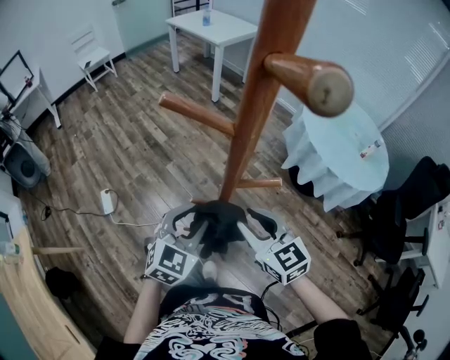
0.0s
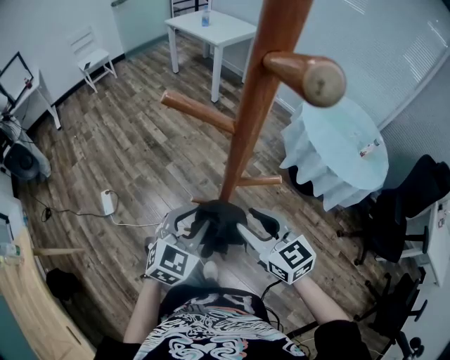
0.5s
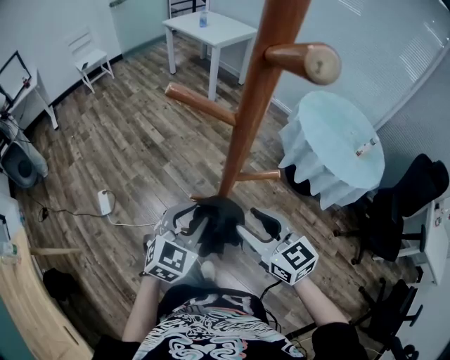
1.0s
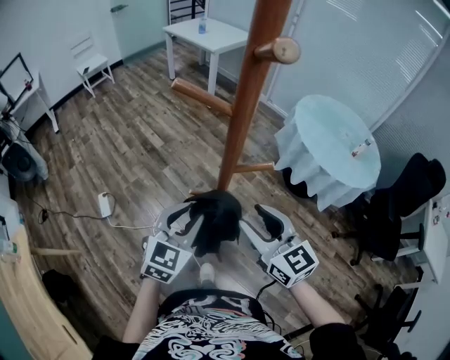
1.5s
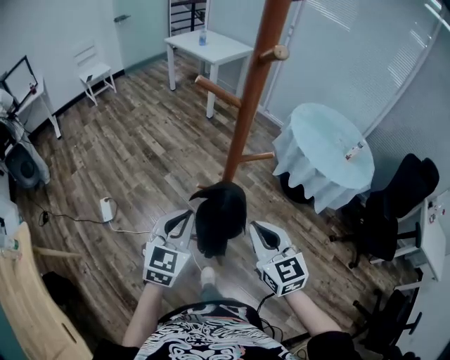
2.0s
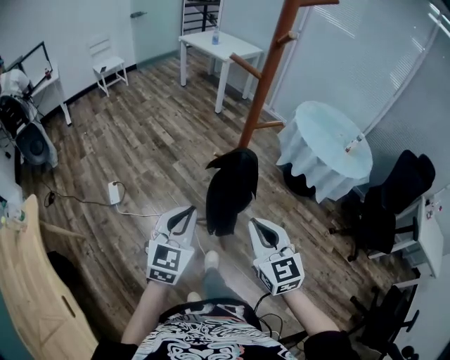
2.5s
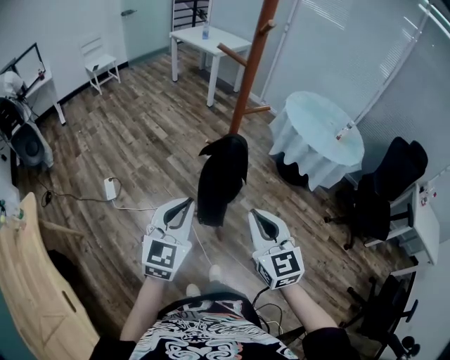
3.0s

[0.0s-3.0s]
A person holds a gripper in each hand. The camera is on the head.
0.0s to 1.5s: The right gripper heads upward, covering some 5 cm.
1.5s to 3.0s: Both grippers travel together backward, about 25 cm. The left gripper closes; the right gripper closes its fingers.

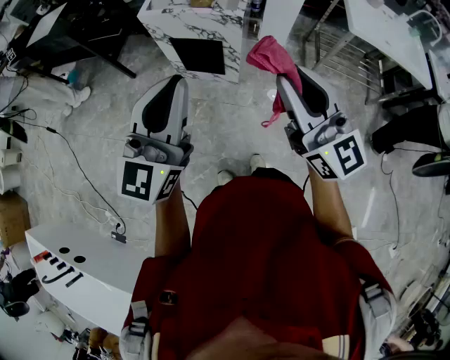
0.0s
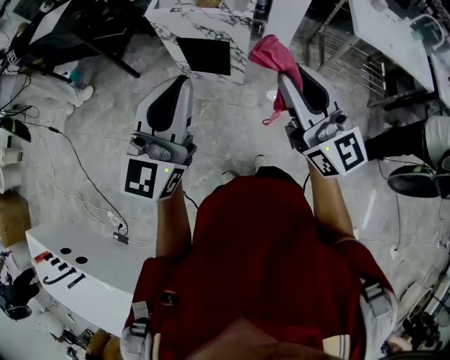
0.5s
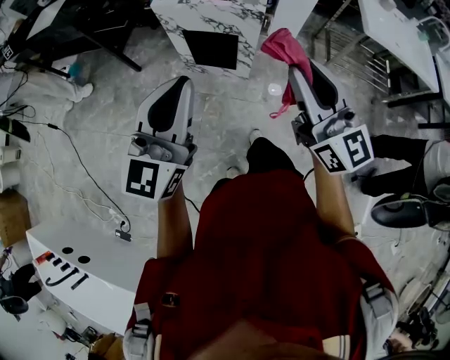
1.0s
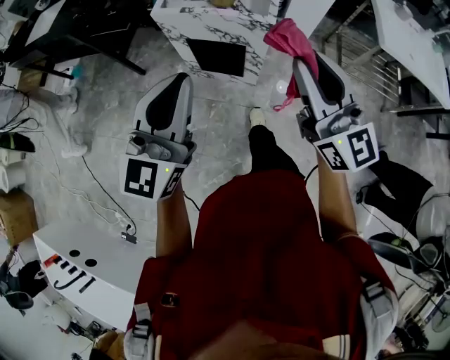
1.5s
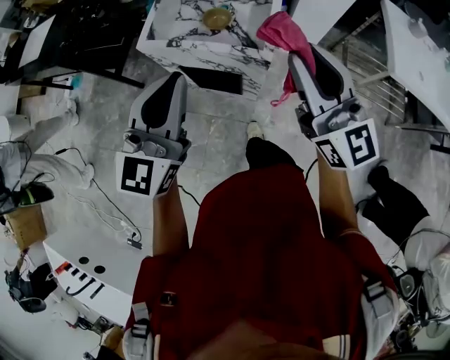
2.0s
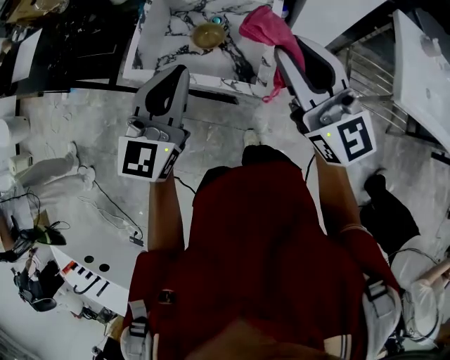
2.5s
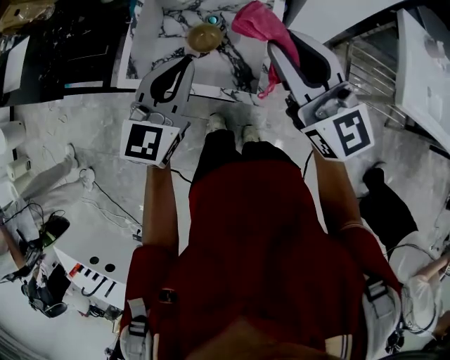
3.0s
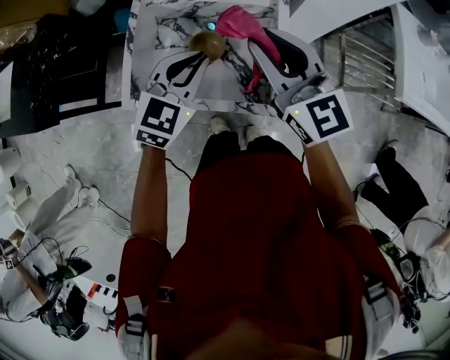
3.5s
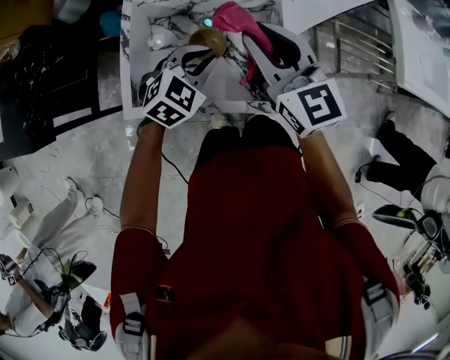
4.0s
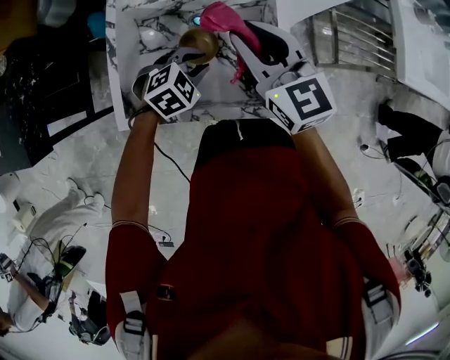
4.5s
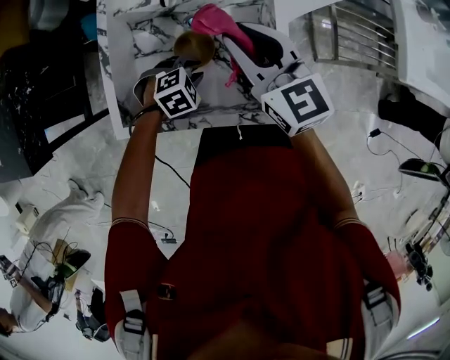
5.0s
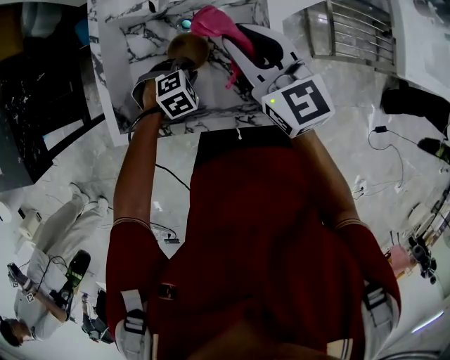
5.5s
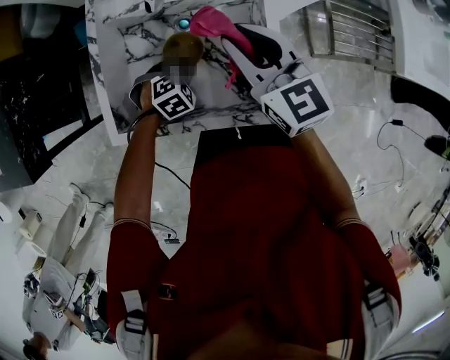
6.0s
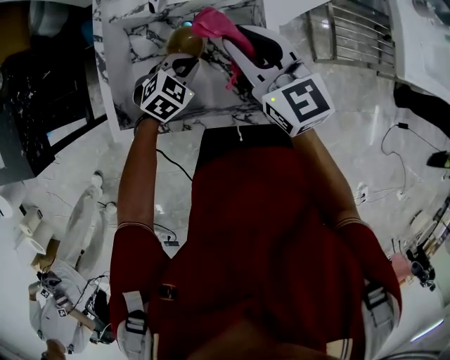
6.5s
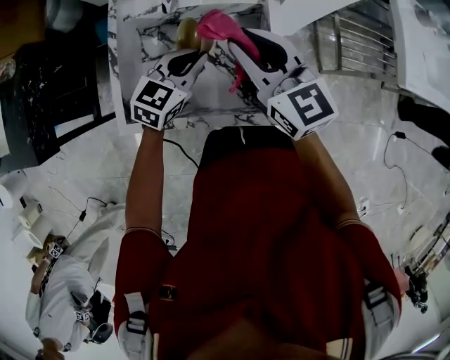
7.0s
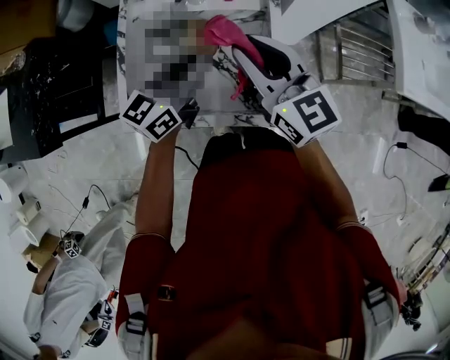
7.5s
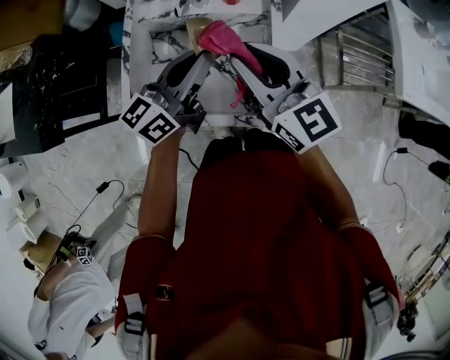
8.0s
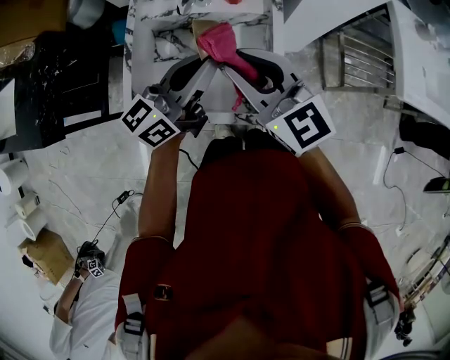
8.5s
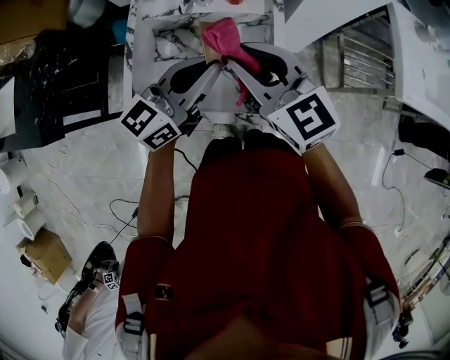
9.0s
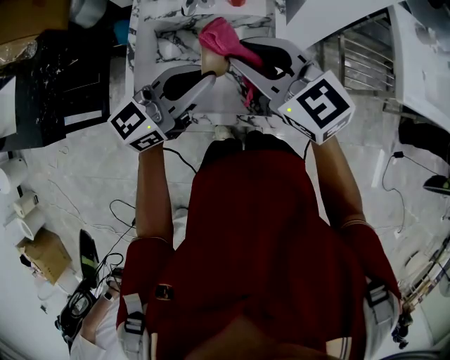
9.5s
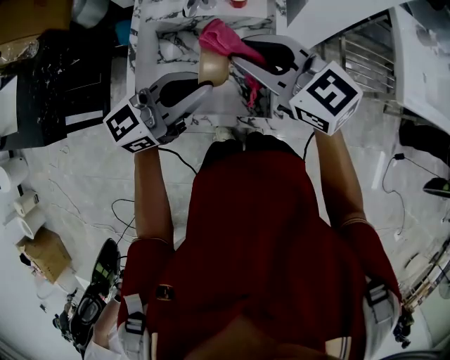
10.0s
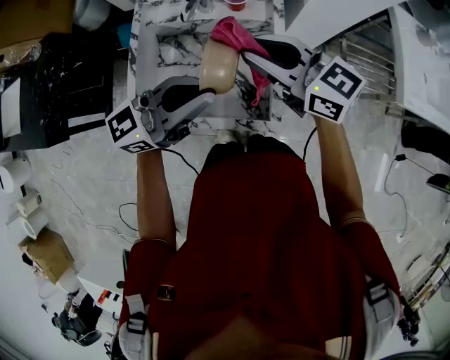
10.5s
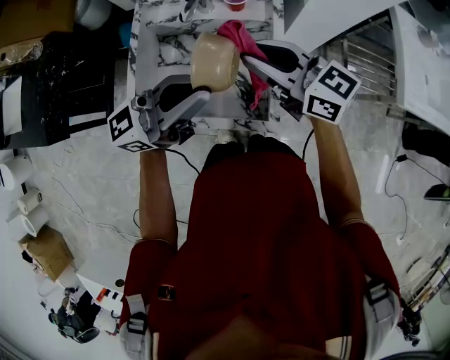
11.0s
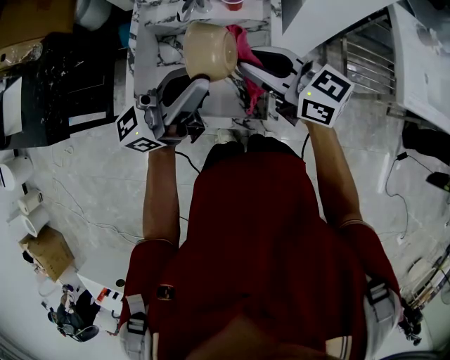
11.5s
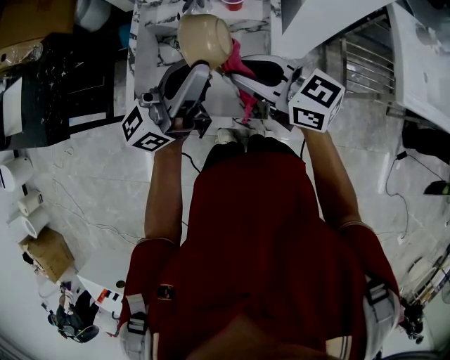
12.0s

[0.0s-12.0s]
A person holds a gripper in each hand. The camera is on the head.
0.0s to 2.0s: The two grippers go roughly 30 cm forward.
2.0s to 4.0s: The left gripper travels forward and downward by roughly 40 cm, and angles its fingers downward, by approximately 40 degrees. The right gripper is displaced forward, downward and to the left by approximately 35 cm, and rotates roughly 20 degrees.
4.0s to 6.0s: The left gripper shifts about 15 cm downward, and turns by about 30 degrees. The right gripper shifts about 5 cm downward.
6.0s to 8.0s: The left gripper heads upward, covering roughly 30 cm, and points its fingers about 70 degrees further upward; the right gripper shifts approximately 10 cm upward and backward.
8.0s to 10.0s: The right gripper turns by some 20 degrees. The left gripper shifts roughly 5 cm backward, and rotates some 20 degrees.
10.0s to 12.0s: The left gripper shifts by about 5 cm, and turns by some 30 degrees.

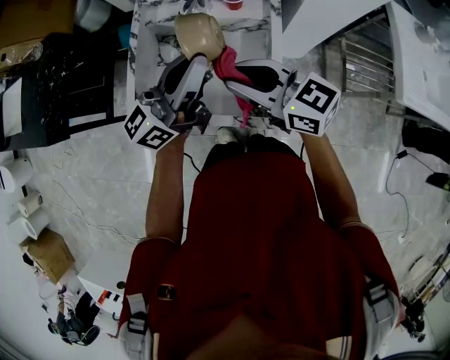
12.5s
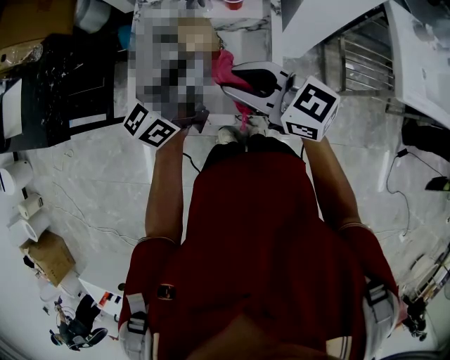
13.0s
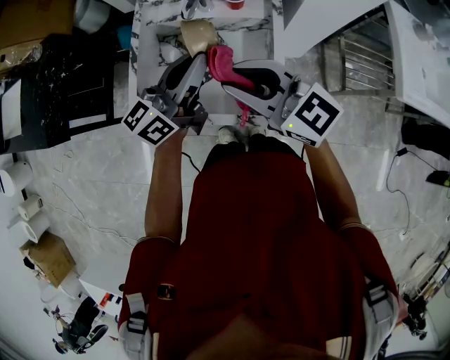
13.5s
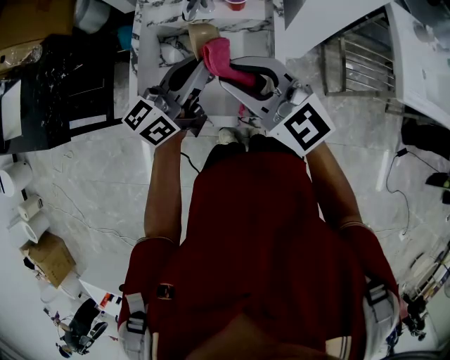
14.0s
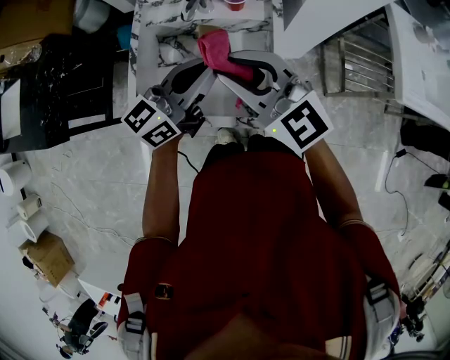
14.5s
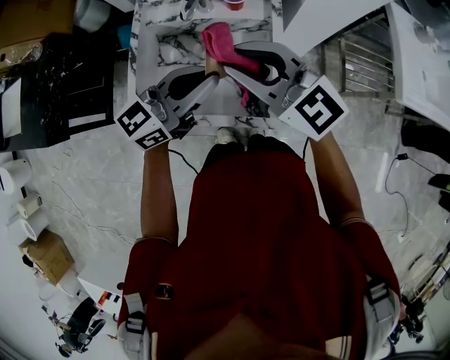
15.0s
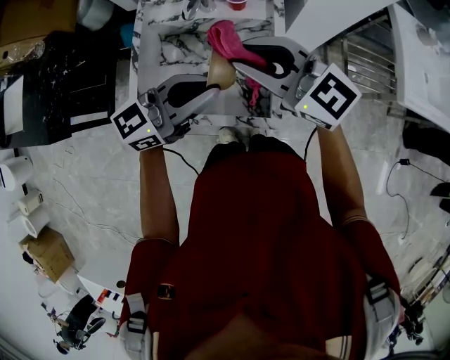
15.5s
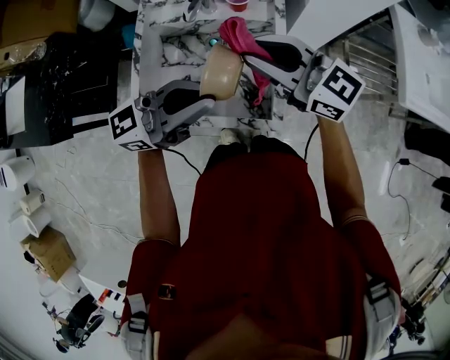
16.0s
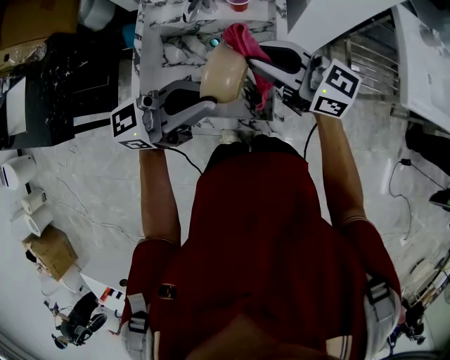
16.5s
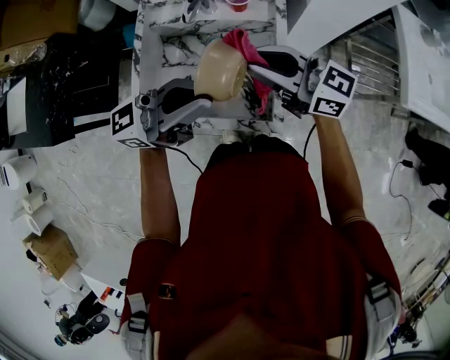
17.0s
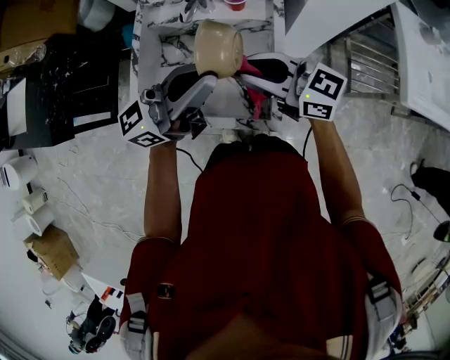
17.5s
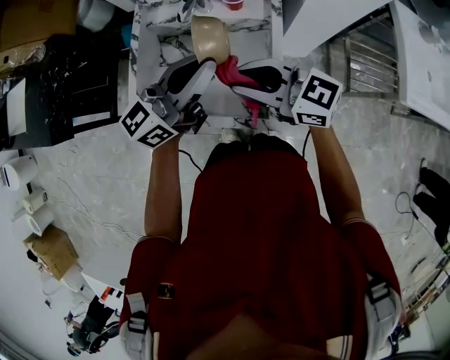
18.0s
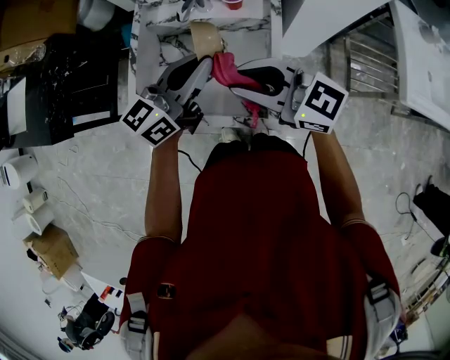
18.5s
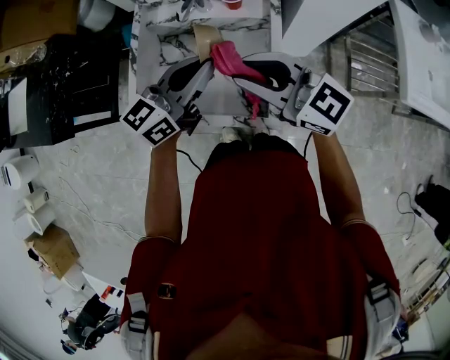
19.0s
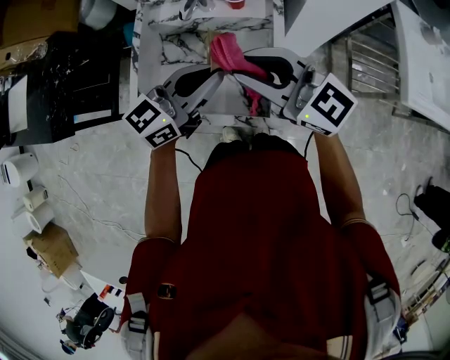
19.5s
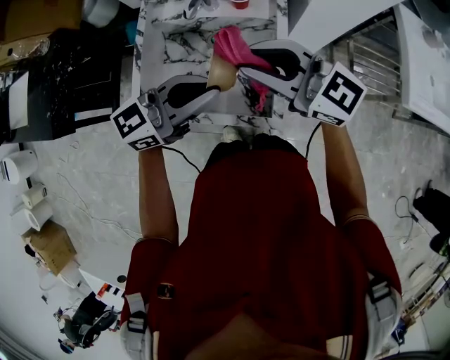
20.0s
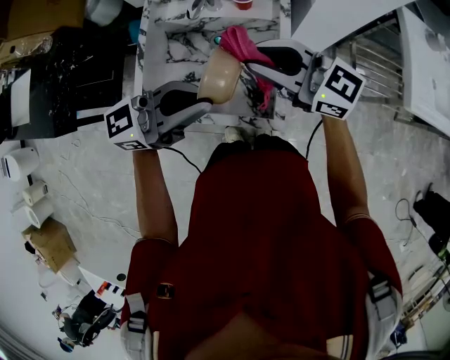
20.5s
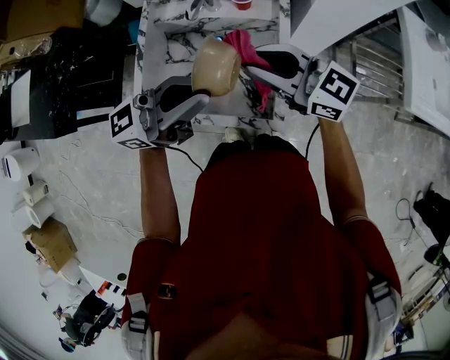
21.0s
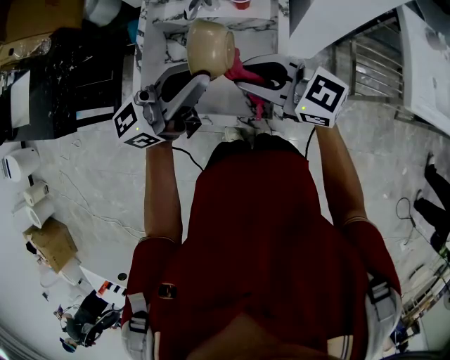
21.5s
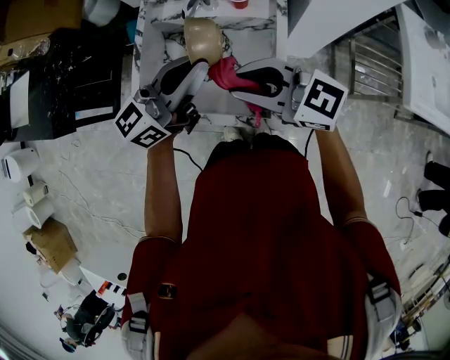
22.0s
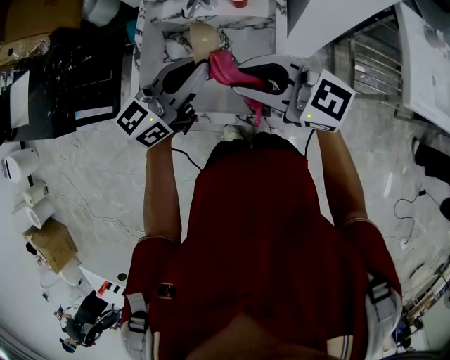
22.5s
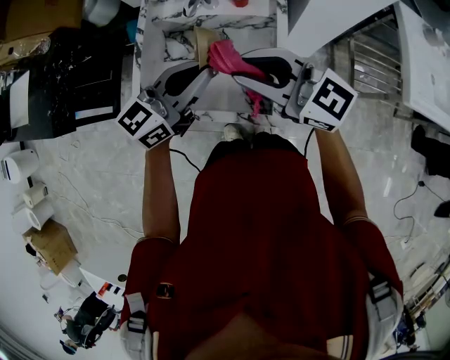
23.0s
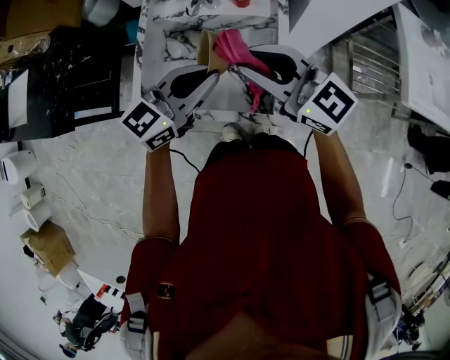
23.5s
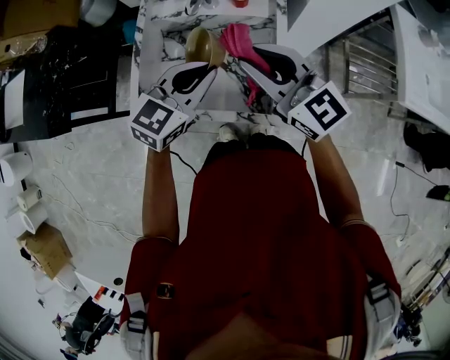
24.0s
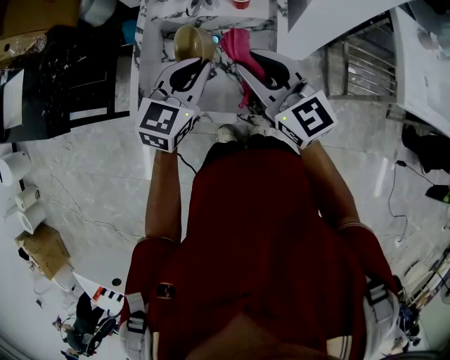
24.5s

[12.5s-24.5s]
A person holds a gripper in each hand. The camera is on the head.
12.5s to 14.5s: The right gripper swivels roughly 30 degrees.
14.5s to 16.5s: The left gripper ends up roughly 10 cm from where it was, and rotates approximately 30 degrees. The right gripper ends up roughly 5 cm from where it was, and rotates approximately 40 degrees.
16.5s to 18.5s: The right gripper moves about 5 cm. Meanwhile the left gripper shifts by about 10 cm, and turns by some 30 degrees.
18.5s to 20.5s: The left gripper moves roughly 10 cm, and rotates roughly 30 degrees.
20.5s to 22.5s: The right gripper moves about 5 cm. The left gripper moves about 10 cm, and swivels some 30 degrees.
22.5s to 24.5s: The left gripper swivels approximately 30 degrees. Meanwhile the right gripper turns by approximately 30 degrees.
